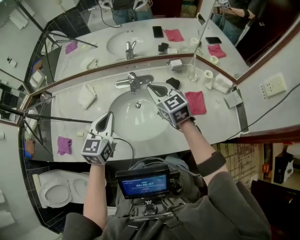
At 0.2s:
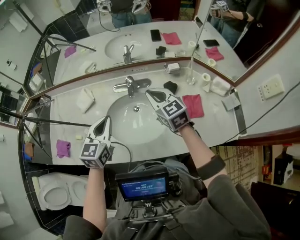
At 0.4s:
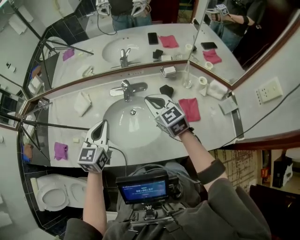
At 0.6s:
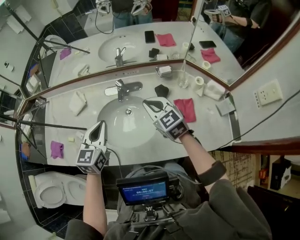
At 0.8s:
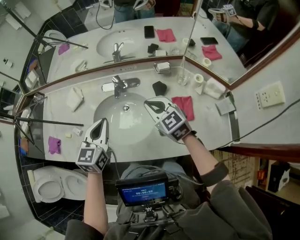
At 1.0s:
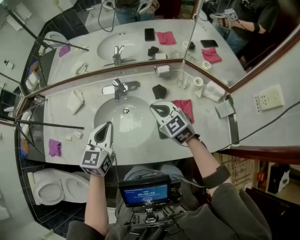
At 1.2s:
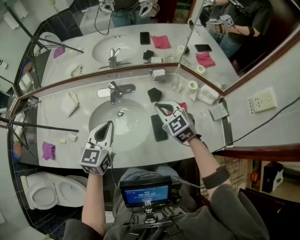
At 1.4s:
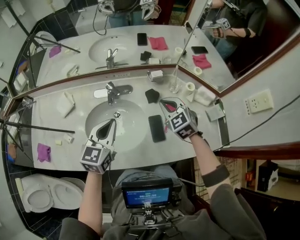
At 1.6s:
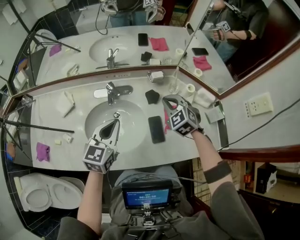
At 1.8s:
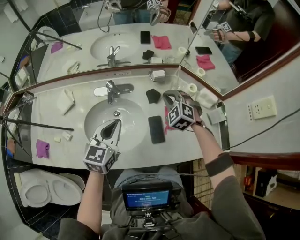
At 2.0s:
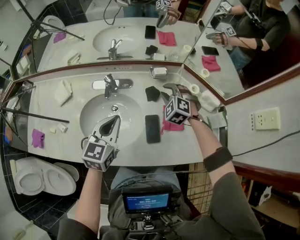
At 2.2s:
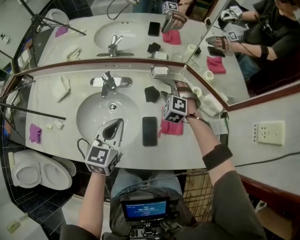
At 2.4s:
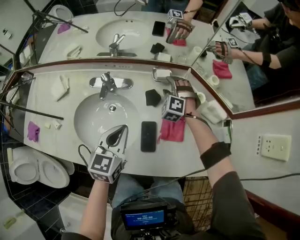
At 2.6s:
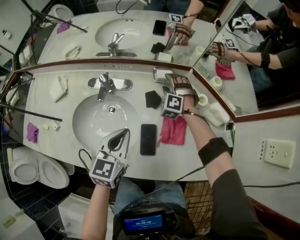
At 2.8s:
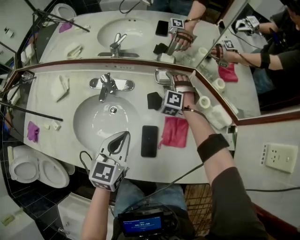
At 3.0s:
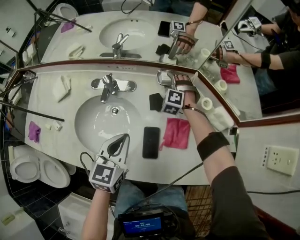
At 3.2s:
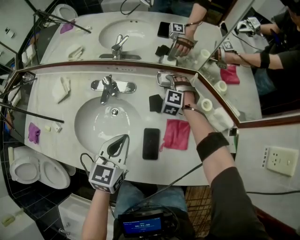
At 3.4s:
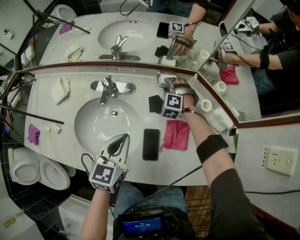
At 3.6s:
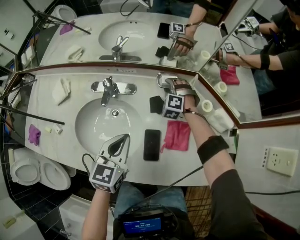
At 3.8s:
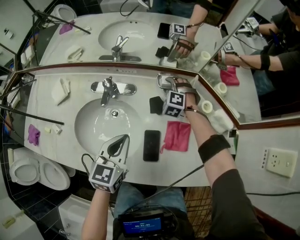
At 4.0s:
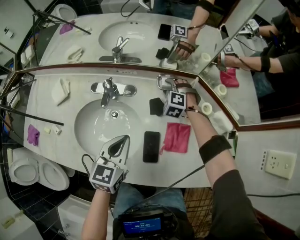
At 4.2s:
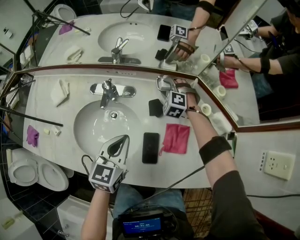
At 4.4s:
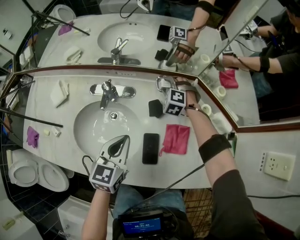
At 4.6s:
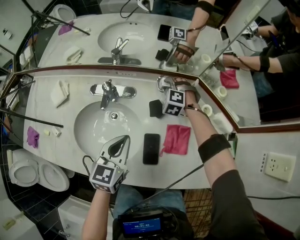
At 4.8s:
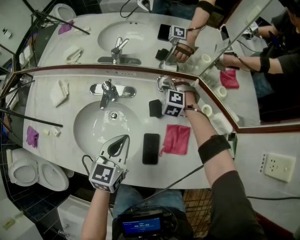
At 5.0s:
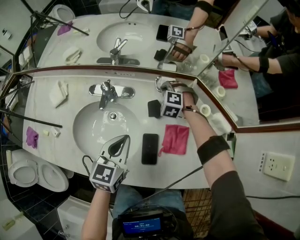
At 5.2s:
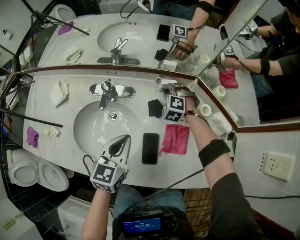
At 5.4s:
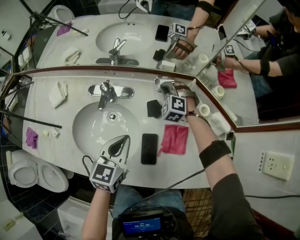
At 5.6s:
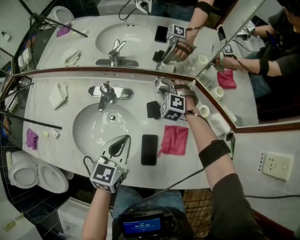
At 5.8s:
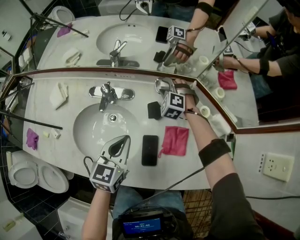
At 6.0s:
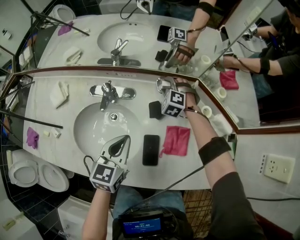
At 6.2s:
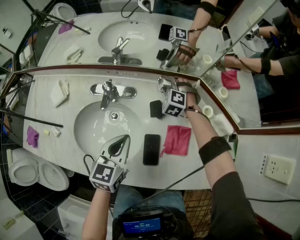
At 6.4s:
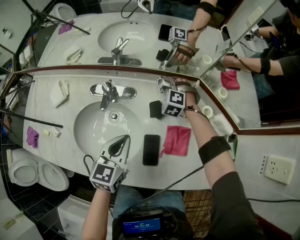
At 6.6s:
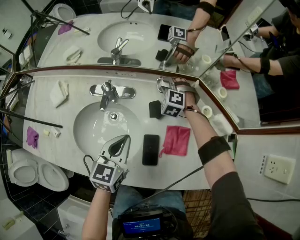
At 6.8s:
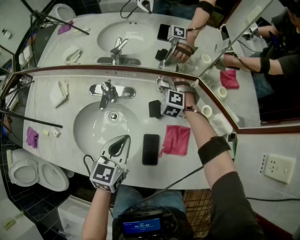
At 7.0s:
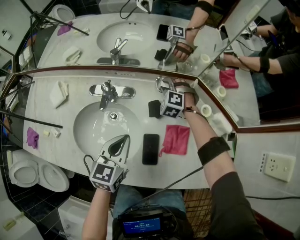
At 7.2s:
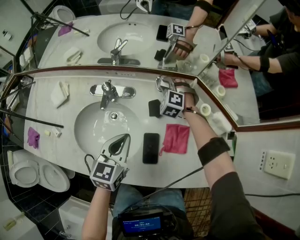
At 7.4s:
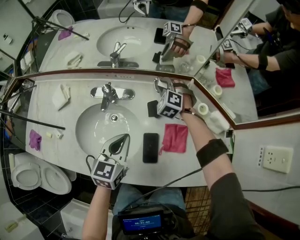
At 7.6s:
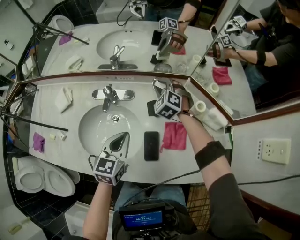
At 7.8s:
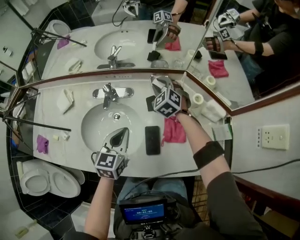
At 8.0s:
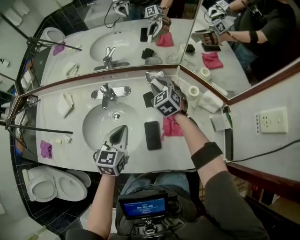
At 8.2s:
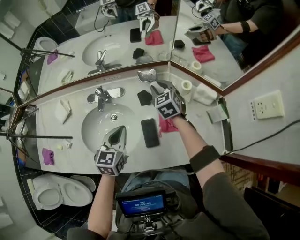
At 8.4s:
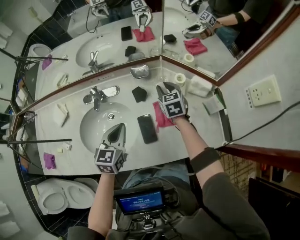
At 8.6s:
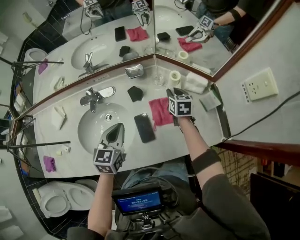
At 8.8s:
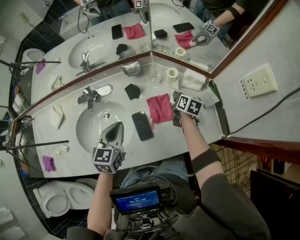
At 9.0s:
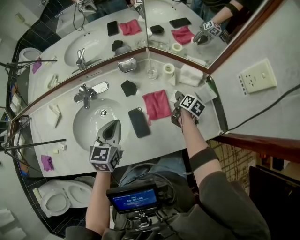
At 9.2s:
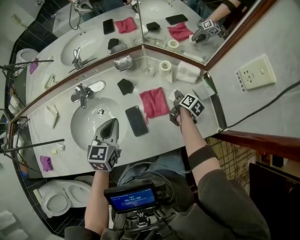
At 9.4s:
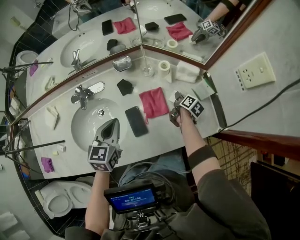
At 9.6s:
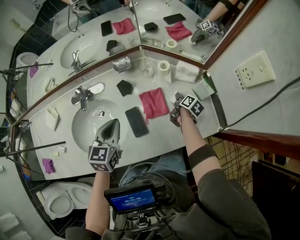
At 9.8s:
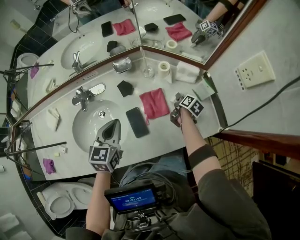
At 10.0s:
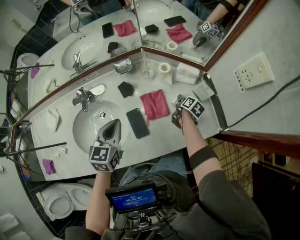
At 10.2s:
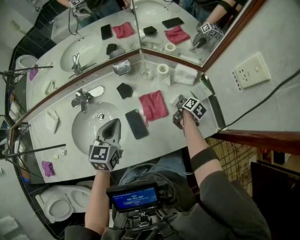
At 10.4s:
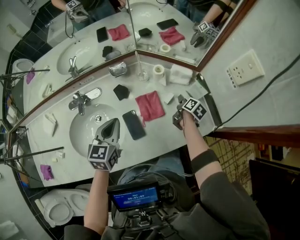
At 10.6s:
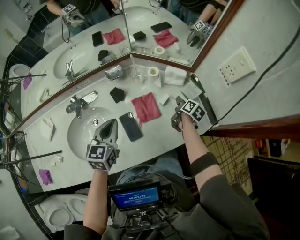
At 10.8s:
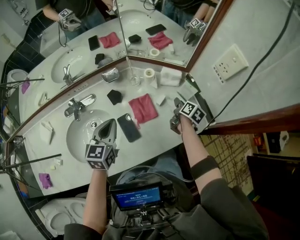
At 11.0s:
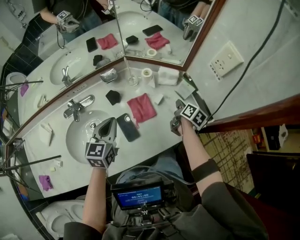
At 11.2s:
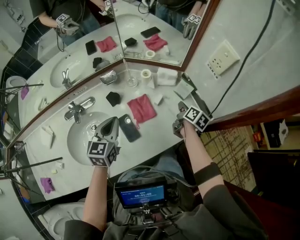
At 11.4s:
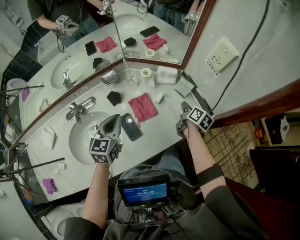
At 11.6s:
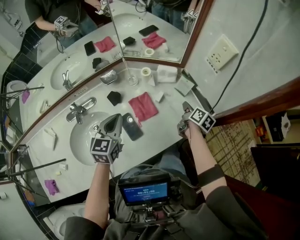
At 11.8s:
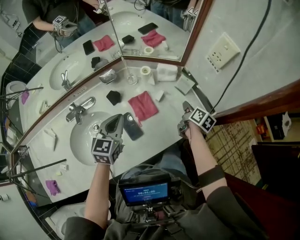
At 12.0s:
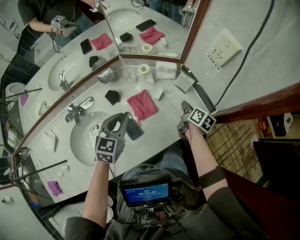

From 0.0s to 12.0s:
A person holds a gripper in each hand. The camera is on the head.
From 0.0s to 1.6s: The two grippers go about 15 cm to the right. The right gripper changes its angle by roughly 40 degrees.
From 1.6s to 3.0s: The right gripper travels forward and downward by roughly 25 cm, swivels about 40 degrees, and opens its fingers; the left gripper goes approximately 15 cm downward and to the right.
From 3.0s to 4.4s: The grippers stay close to where they were, moving slightly.
From 4.4s to 6.0s: The right gripper closes, then opens again.
From 6.0s to 7.6s: The right gripper is displaced upward by some 10 cm.
From 7.6s to 9.0s: The left gripper heads to the right, covering roughly 5 cm. The right gripper heads to the right and backward, covering approximately 35 cm, and twists some 120 degrees clockwise, seen from behind.
From 9.0s to 10.4s: The right gripper goes approximately 5 cm to the right.
From 10.4s to 12.0s: The left gripper goes approximately 5 cm to the right, and rotates approximately 20 degrees; the right gripper shifts about 10 cm upward and backward, and closes.

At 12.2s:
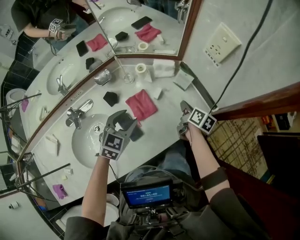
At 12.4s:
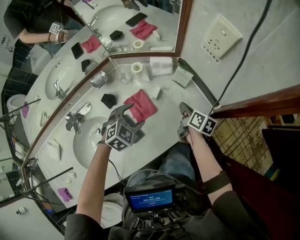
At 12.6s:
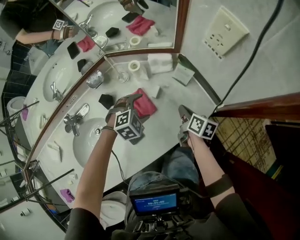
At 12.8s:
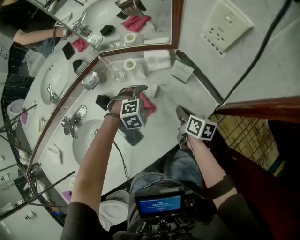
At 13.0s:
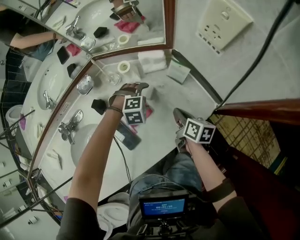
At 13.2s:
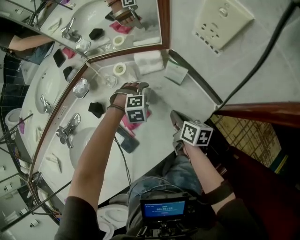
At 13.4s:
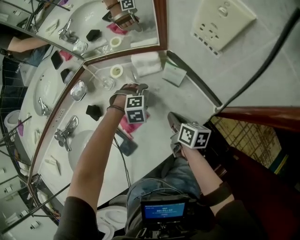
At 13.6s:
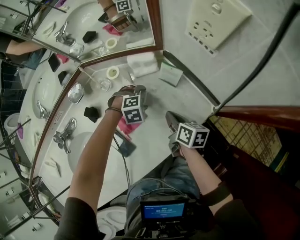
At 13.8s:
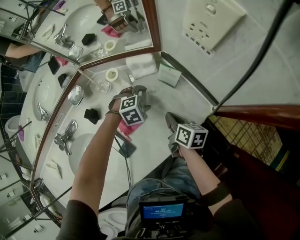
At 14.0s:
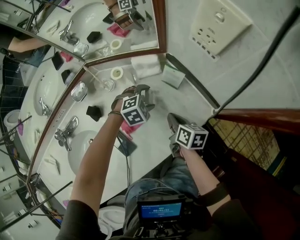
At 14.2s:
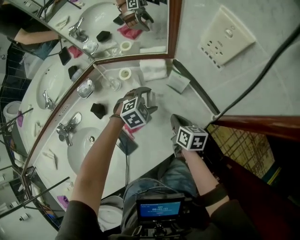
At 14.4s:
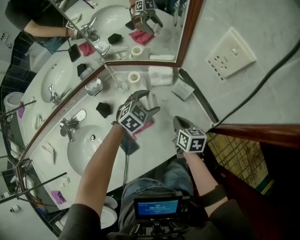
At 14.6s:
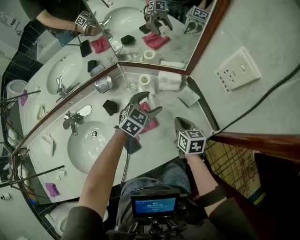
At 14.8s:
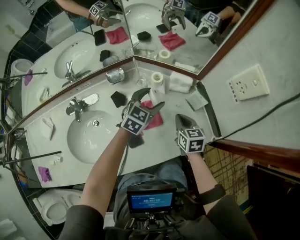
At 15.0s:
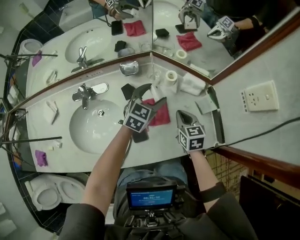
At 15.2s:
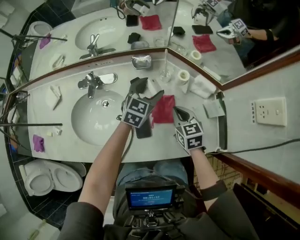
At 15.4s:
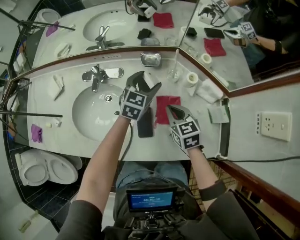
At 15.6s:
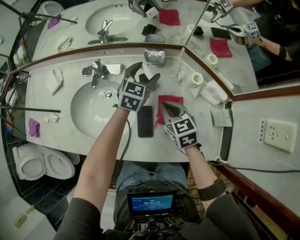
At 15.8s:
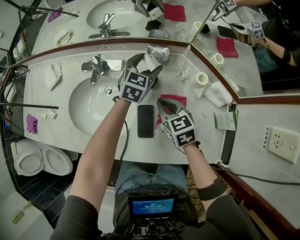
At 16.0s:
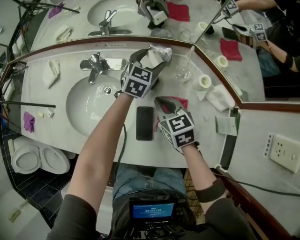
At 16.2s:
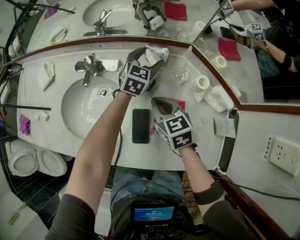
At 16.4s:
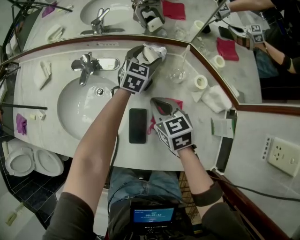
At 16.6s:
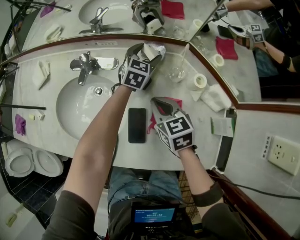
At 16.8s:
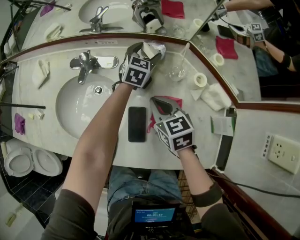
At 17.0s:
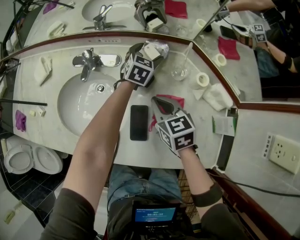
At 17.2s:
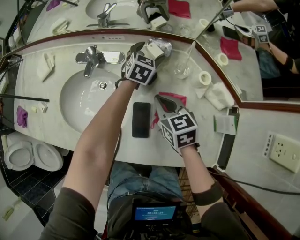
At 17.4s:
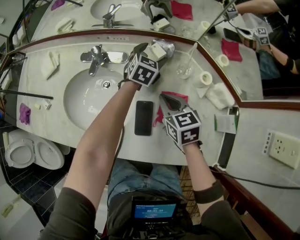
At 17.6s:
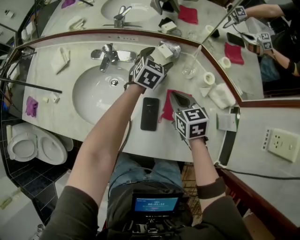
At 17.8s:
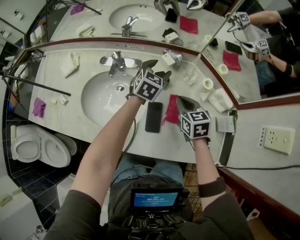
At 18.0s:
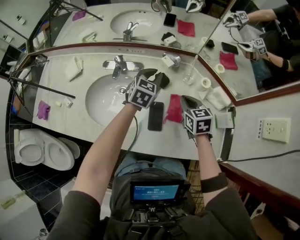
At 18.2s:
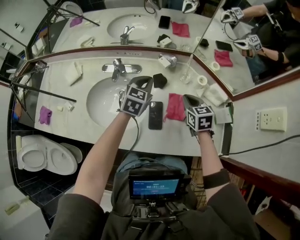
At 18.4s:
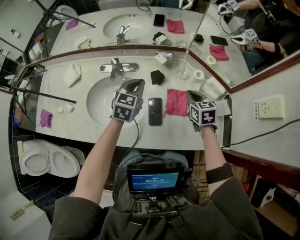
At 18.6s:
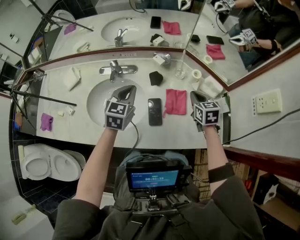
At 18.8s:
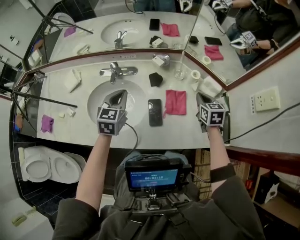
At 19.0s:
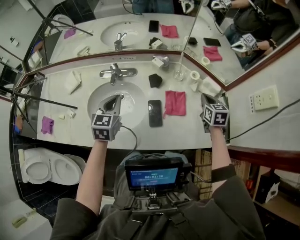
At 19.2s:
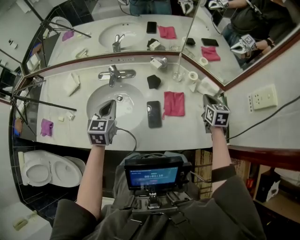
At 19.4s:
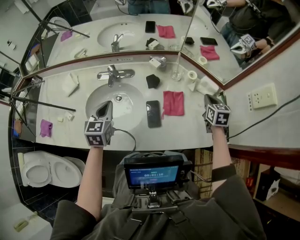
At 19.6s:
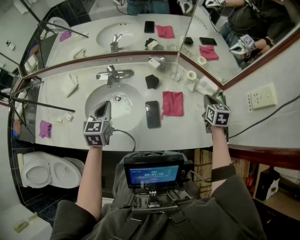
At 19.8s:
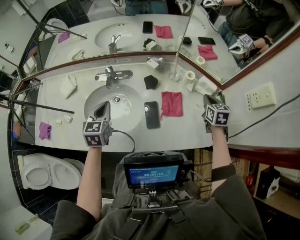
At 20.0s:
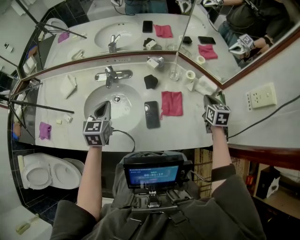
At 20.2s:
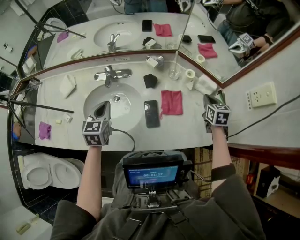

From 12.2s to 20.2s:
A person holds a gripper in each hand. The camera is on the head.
From 12.2s to 13.8s: The right gripper travels downward by some 10 cm; the left gripper heads downward, covering approximately 20 cm, and tilts its fingers approximately 30 degrees downward.
From 13.8s to 15.4s: The left gripper ends up roughly 35 cm from where it was, and tips its fingers upward by roughly 40 degrees. Meanwhile the right gripper ends up roughly 25 cm from where it was, and twists approximately 70 degrees counterclockwise, seen from behind.
From 15.4s to 17.0s: The left gripper heads forward and downward, covering about 15 cm, while the right gripper moves to the left, roughly 5 cm.
From 17.0s to 18.6s: The right gripper is displaced to the right, upward and backward by some 15 cm, while the left gripper travels backward, upward and to the left by some 35 cm, and closes.
From 18.6s to 20.2s: The left gripper shifts roughly 10 cm to the left. Meanwhile the right gripper is displaced to the right by roughly 10 cm.

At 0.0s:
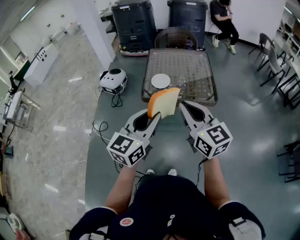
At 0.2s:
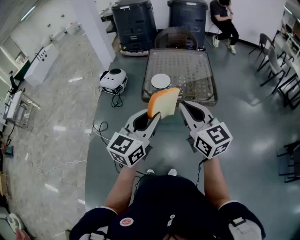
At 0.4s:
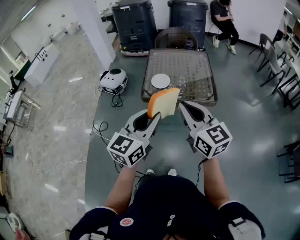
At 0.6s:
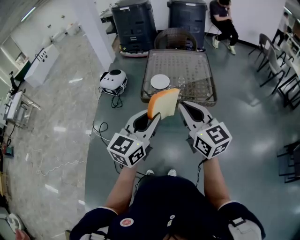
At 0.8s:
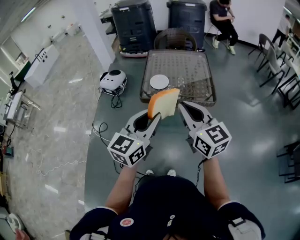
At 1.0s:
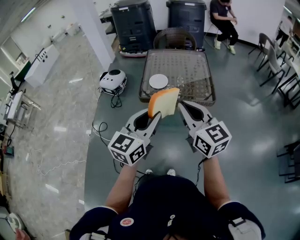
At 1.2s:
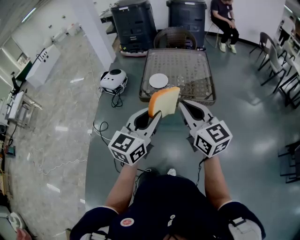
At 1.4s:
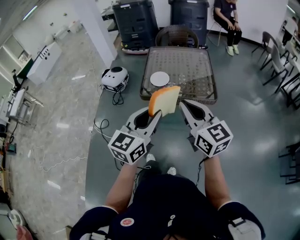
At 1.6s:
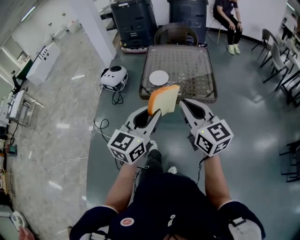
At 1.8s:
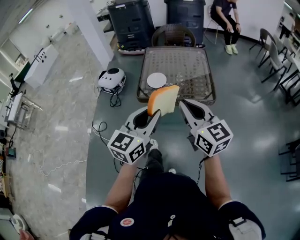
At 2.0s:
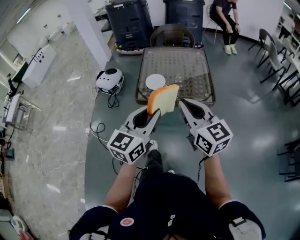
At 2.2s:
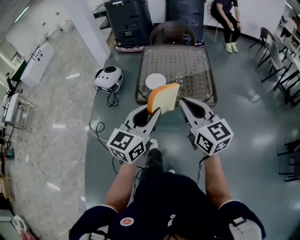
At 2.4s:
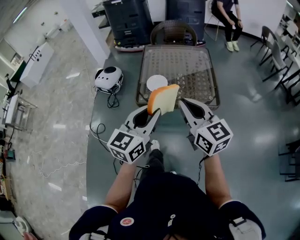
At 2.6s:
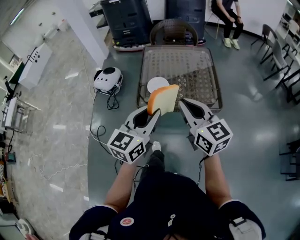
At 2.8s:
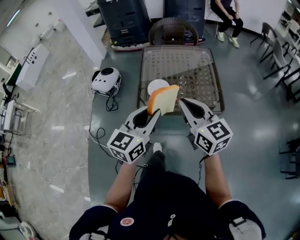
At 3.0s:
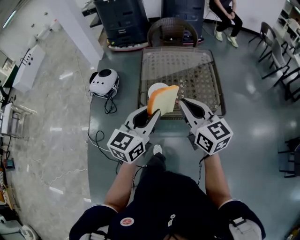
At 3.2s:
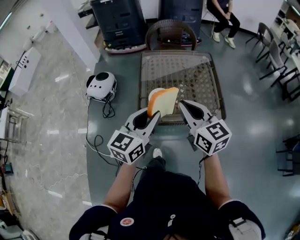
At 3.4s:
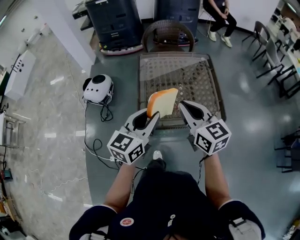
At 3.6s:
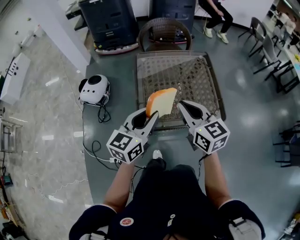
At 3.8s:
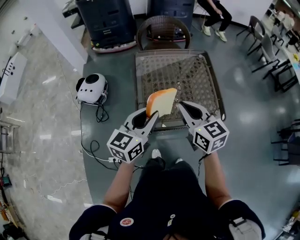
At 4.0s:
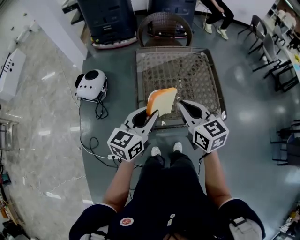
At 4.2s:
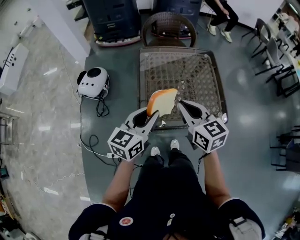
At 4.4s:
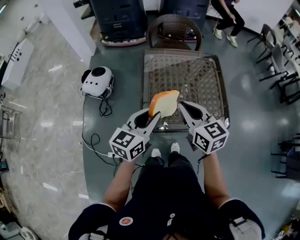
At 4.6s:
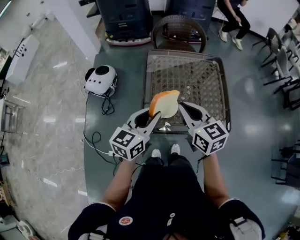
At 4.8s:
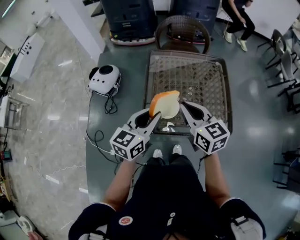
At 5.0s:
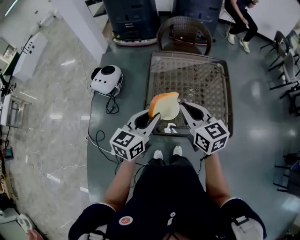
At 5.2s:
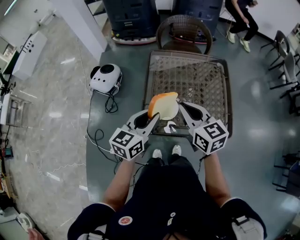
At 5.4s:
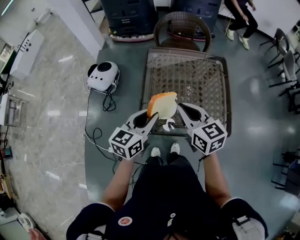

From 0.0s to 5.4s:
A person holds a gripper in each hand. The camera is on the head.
From 0.0s to 1.4s: The grippers make only small movements.
From 1.4s to 2.8s: Both grippers travel together forward, roughly 20 cm.
From 2.8s to 4.0s: The grippers both shift forward and to the left by approximately 15 cm.
From 4.0s to 5.4s: The left gripper moves about 5 cm; the right gripper ends up some 5 cm from where it was.
